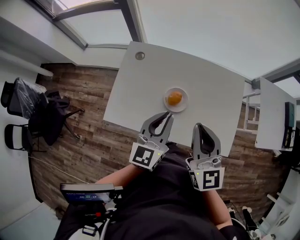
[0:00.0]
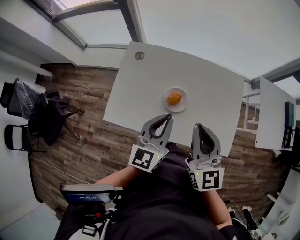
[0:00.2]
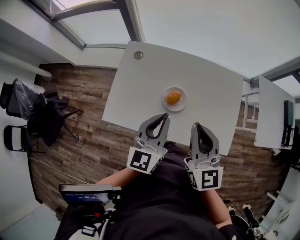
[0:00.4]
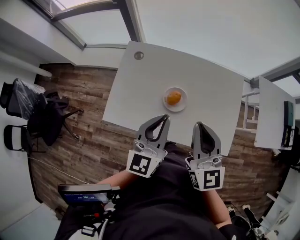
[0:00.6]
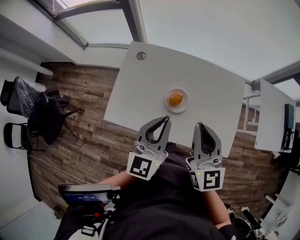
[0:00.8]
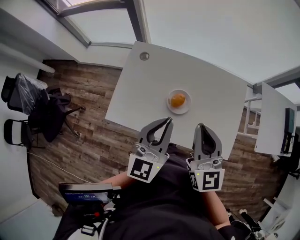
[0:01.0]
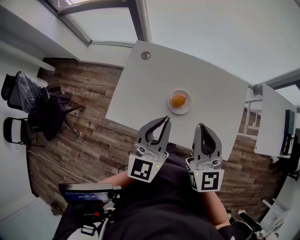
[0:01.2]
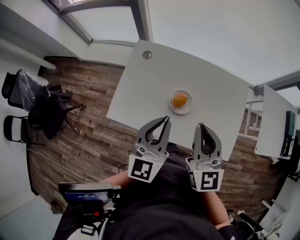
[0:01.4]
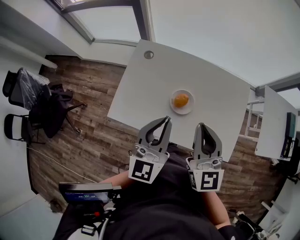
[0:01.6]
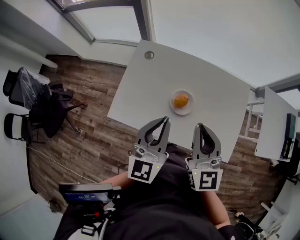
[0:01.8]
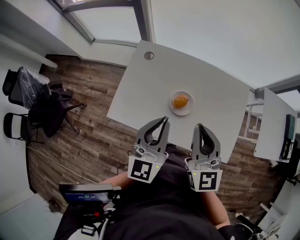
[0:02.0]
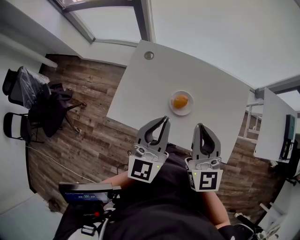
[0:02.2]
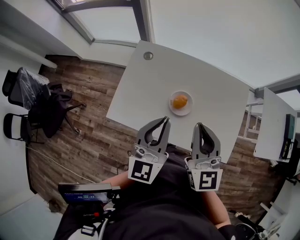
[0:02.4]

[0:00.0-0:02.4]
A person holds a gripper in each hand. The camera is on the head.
0:00.0 to 0:01.2: The left gripper moves about 5 cm.
0:01.2 to 0:02.4: The grippers make only small movements.

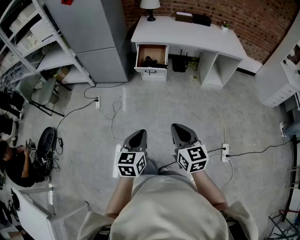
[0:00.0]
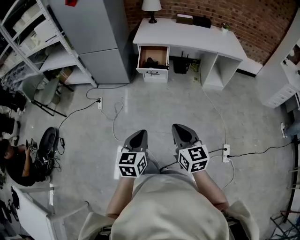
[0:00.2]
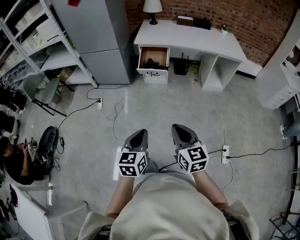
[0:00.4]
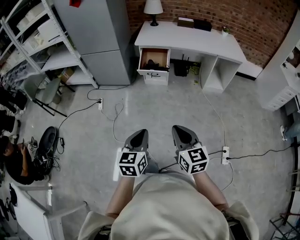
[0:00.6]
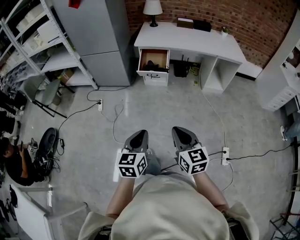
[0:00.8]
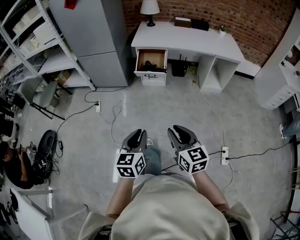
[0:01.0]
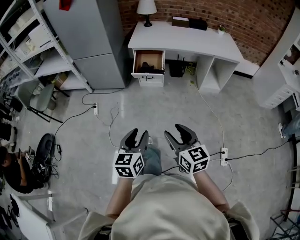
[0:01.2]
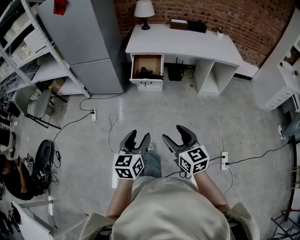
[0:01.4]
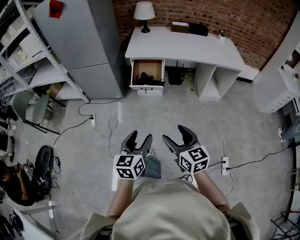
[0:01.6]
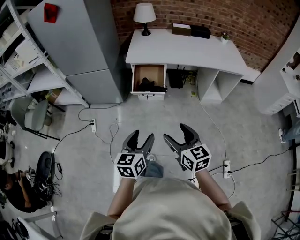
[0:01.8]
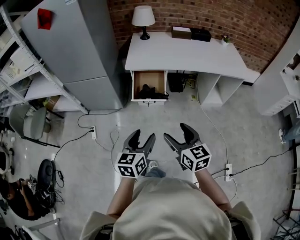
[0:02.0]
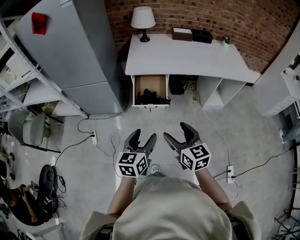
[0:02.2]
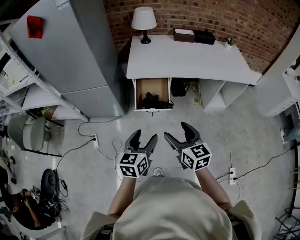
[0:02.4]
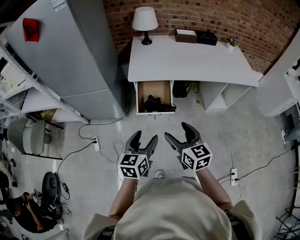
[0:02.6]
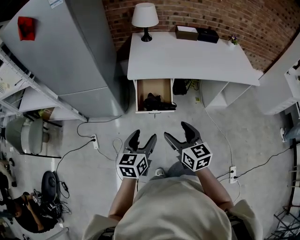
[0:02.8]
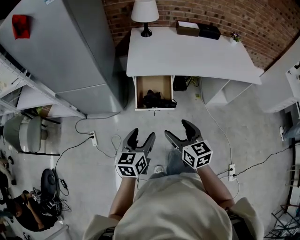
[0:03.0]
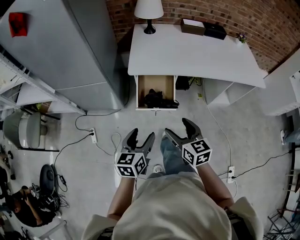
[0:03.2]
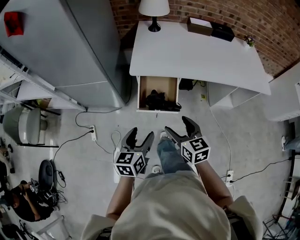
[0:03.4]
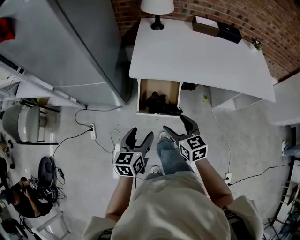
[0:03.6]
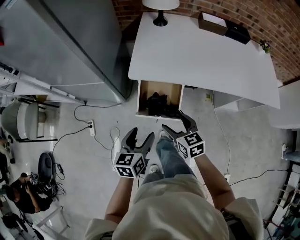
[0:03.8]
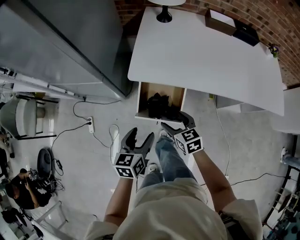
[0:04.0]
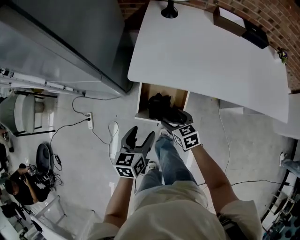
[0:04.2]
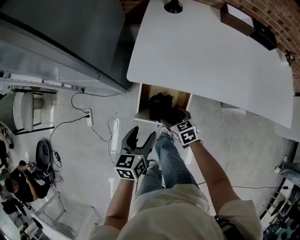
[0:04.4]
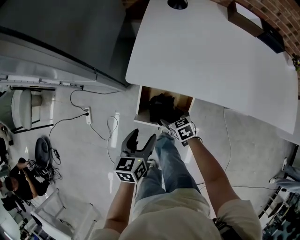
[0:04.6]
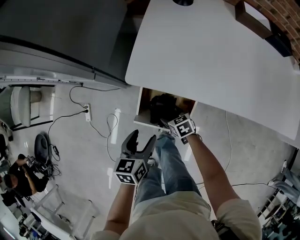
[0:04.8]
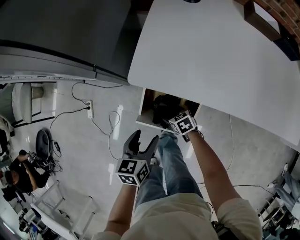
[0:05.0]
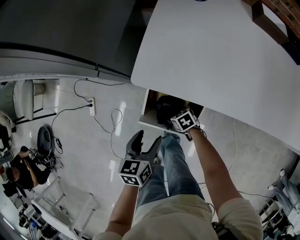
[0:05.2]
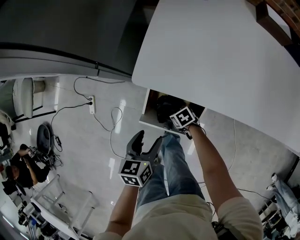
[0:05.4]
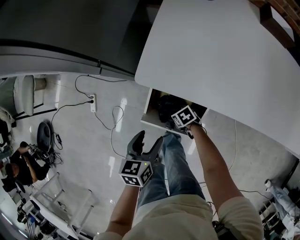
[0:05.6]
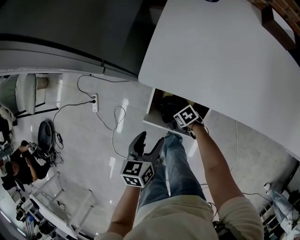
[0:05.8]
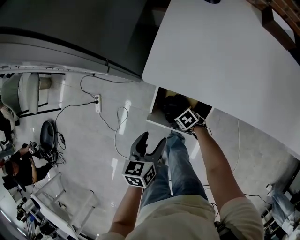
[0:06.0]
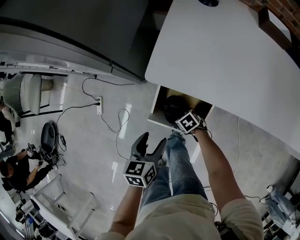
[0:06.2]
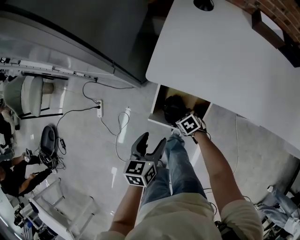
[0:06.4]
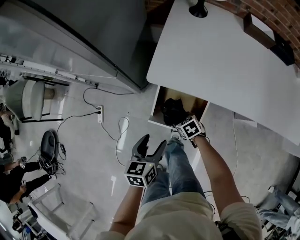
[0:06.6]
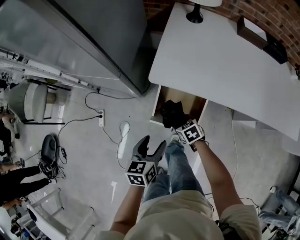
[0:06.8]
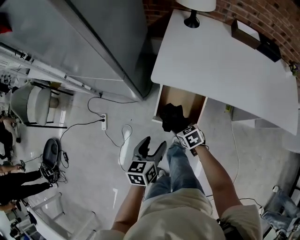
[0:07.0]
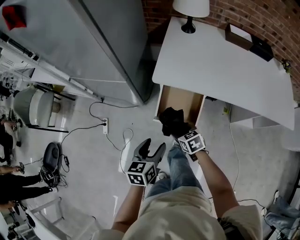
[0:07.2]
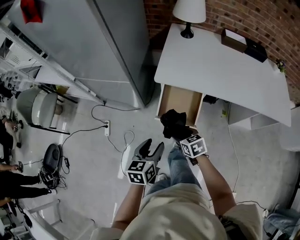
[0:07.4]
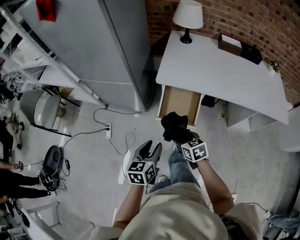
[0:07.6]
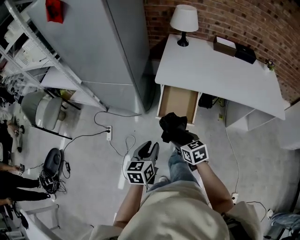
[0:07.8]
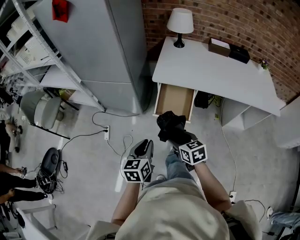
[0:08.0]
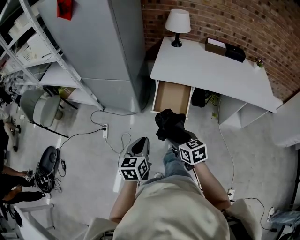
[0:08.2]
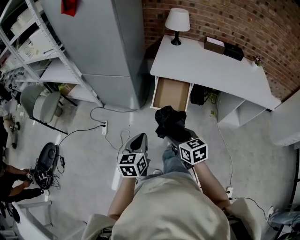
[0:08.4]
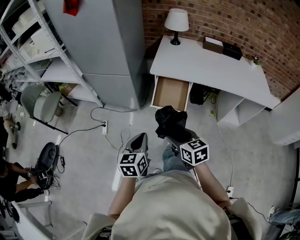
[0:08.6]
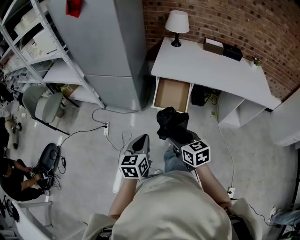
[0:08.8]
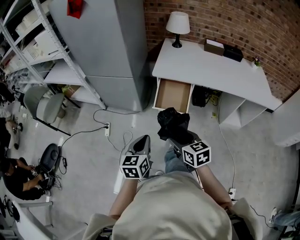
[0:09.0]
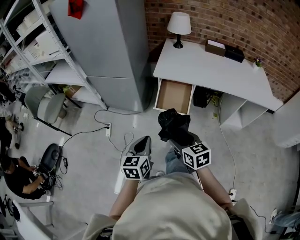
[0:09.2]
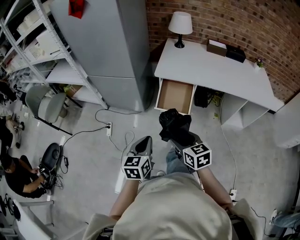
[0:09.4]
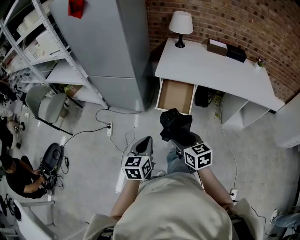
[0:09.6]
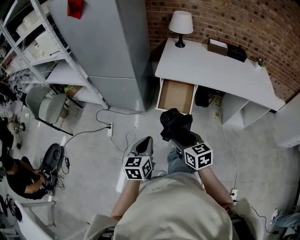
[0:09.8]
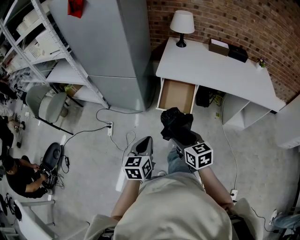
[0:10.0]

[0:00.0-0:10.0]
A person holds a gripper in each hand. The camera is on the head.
0:00.0 to 0:01.4: Both grippers travel together forward, about 5 cm. The right gripper opens up; the left gripper opens up.
0:01.4 to 0:02.8: Both grippers travel together forward, roughly 35 cm.
0:02.8 to 0:04.2: The grippers both shift forward and downward by approximately 30 cm. The right gripper rotates some 30 degrees.
0:04.2 to 0:05.8: The left gripper shifts approximately 10 cm downward. The right gripper goes approximately 25 cm downward, and swivels approximately 40 degrees.
0:05.8 to 0:07.2: The left gripper changes place by some 15 cm. Meanwhile the right gripper is displaced upward by some 25 cm, and rotates about 30 degrees.
0:07.2 to 0:08.6: The right gripper moves backward and upward, about 30 cm, and rotates approximately 20 degrees, while the left gripper travels backward, upward and to the left by approximately 25 cm, and closes up.
0:08.6 to 0:10.0: Both grippers stay put.

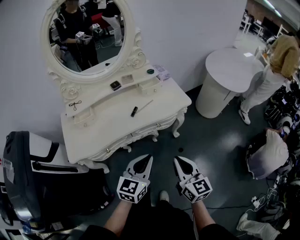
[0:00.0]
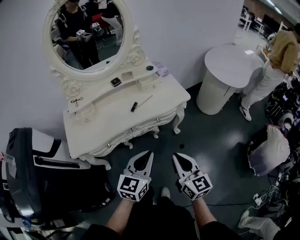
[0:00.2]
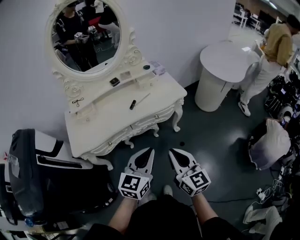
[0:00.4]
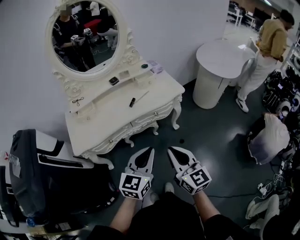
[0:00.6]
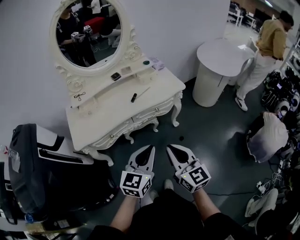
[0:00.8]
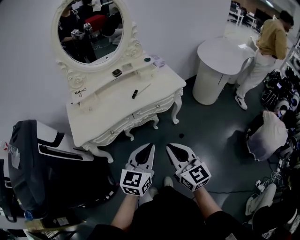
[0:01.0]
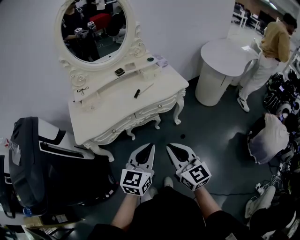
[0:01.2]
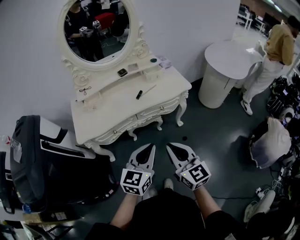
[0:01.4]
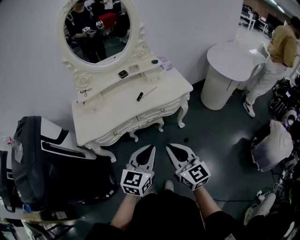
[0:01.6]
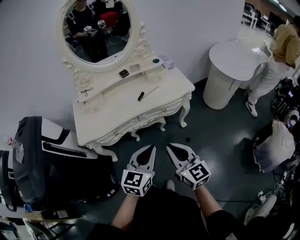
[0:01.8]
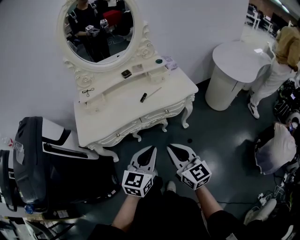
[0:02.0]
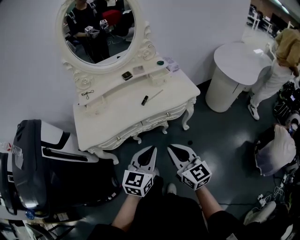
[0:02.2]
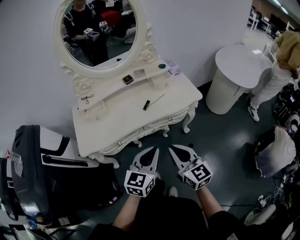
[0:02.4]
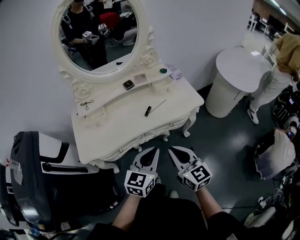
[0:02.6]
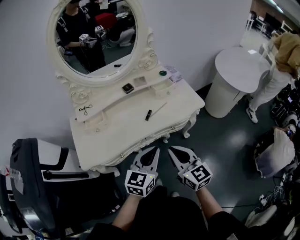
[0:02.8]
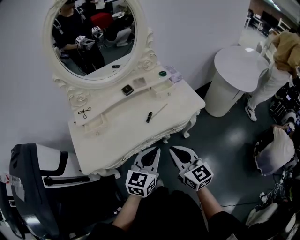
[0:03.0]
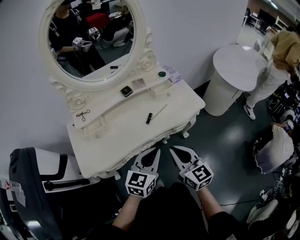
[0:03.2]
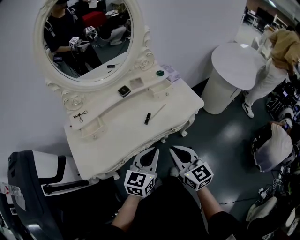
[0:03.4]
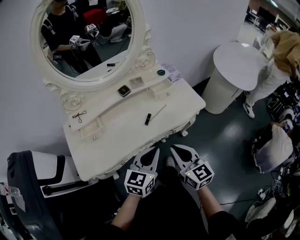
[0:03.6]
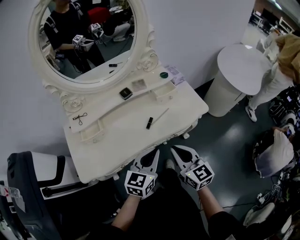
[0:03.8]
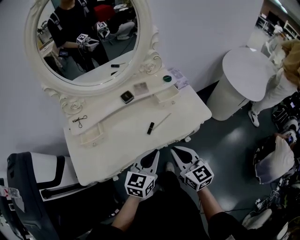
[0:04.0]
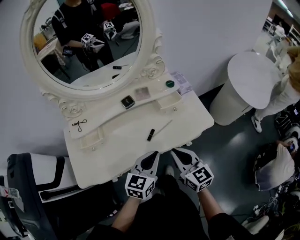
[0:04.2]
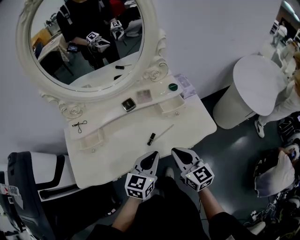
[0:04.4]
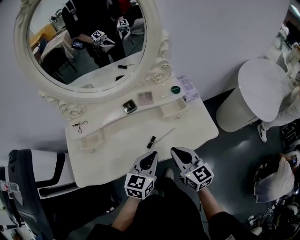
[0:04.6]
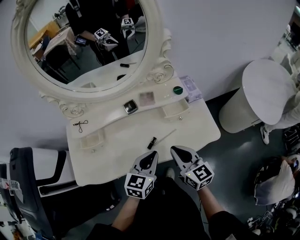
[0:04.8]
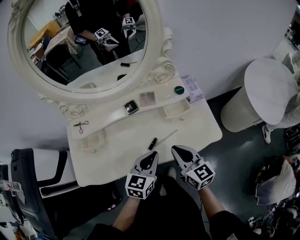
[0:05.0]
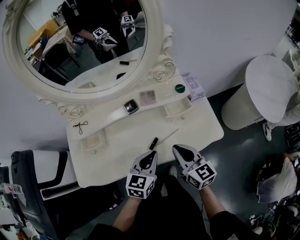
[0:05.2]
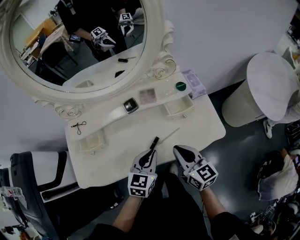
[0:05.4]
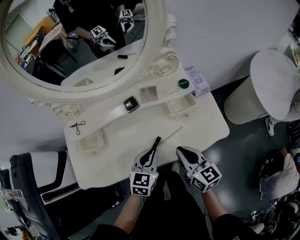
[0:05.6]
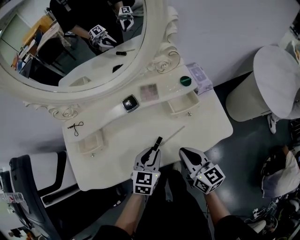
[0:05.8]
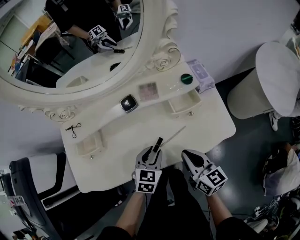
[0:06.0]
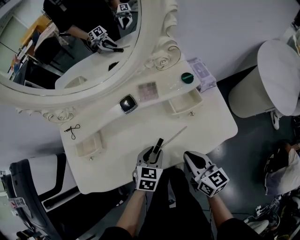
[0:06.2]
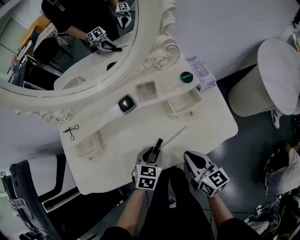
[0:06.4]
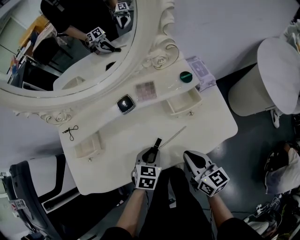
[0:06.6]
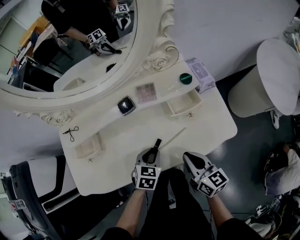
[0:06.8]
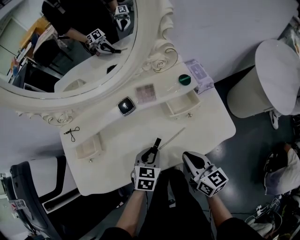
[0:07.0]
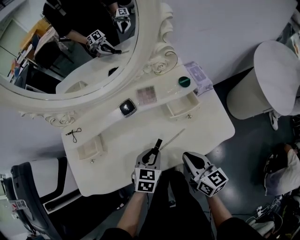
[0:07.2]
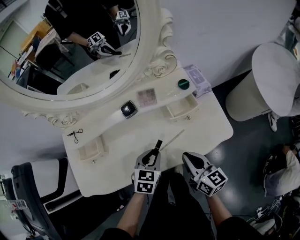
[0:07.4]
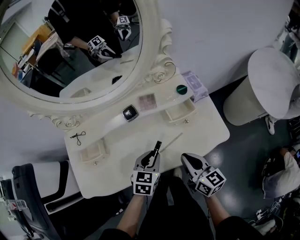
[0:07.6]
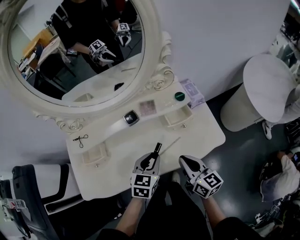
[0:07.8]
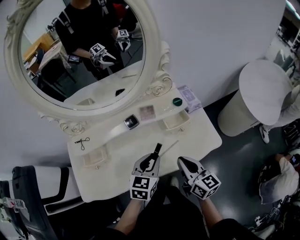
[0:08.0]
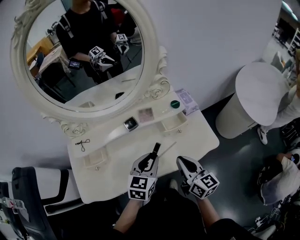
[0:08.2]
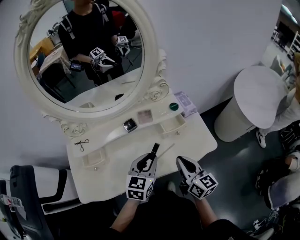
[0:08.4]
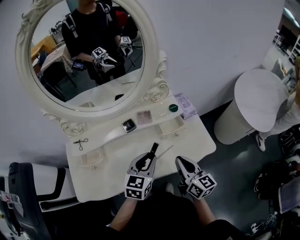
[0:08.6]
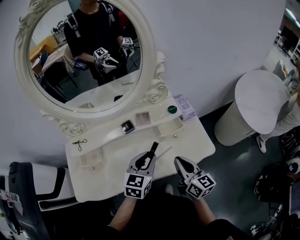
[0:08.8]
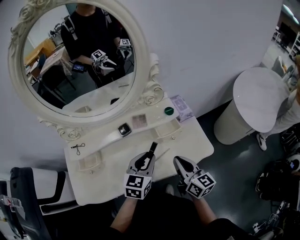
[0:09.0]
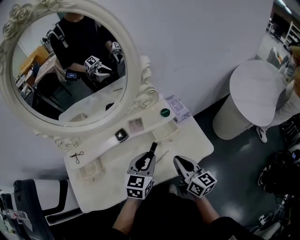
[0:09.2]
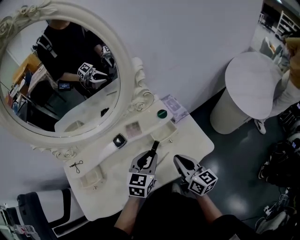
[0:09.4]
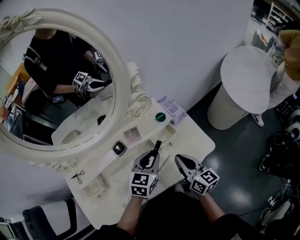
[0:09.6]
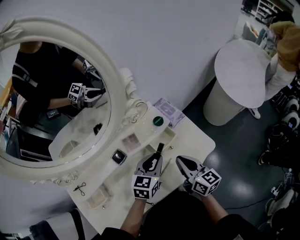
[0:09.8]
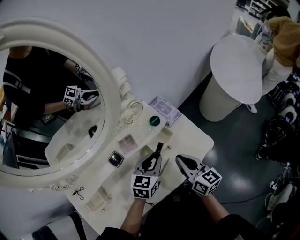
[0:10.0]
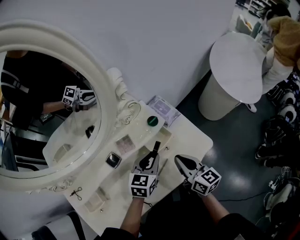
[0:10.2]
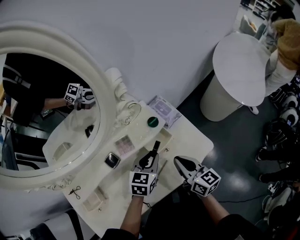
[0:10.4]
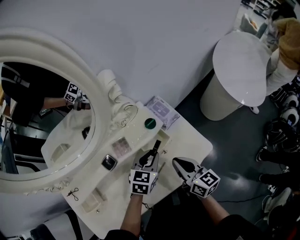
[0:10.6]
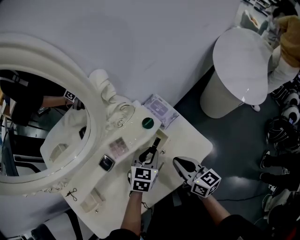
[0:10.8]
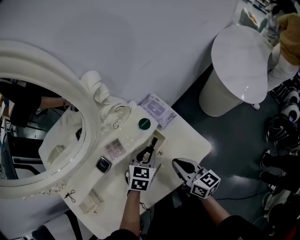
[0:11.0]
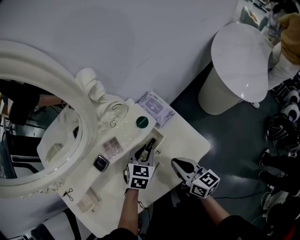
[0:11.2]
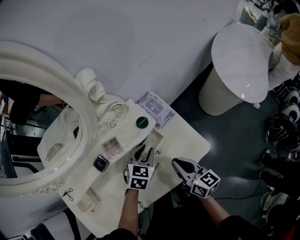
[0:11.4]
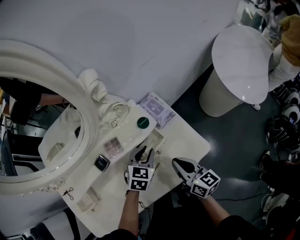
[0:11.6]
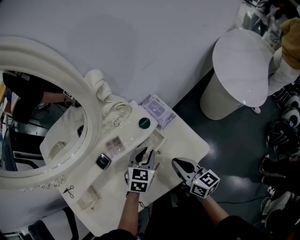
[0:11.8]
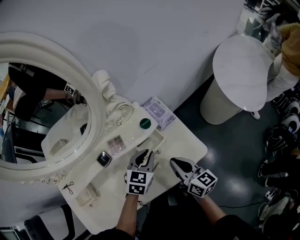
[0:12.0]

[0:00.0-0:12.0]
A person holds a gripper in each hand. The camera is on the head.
0:00.0 to 0:01.6: The grippers both shift backward by approximately 10 cm.
0:01.6 to 0:03.0: The two grippers go some 20 cm forward.
0:03.0 to 0:04.4: The grippers both shift forward by some 20 cm.
0:04.4 to 0:06.0: The right gripper moves downward and forward, approximately 10 cm, while the left gripper shifts approximately 15 cm downward and forward, turns by some 20 degrees, and opens.
0:06.0 to 0:07.6: There are only small adjustments of the grippers.
0:07.6 to 0:09.0: The right gripper travels upward by approximately 5 cm. Meanwhile the left gripper is displaced upward by some 10 cm.
0:09.0 to 0:10.4: The right gripper shifts about 10 cm forward. Meanwhile the left gripper is displaced forward and downward by approximately 15 cm, and turns by some 20 degrees.
